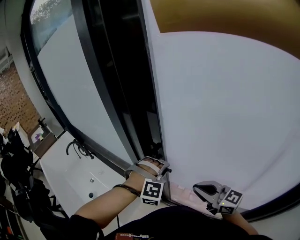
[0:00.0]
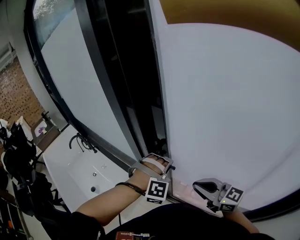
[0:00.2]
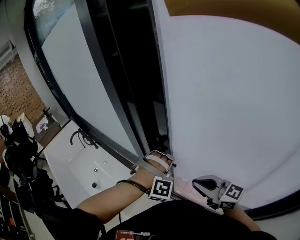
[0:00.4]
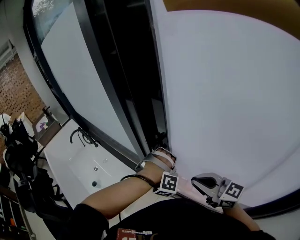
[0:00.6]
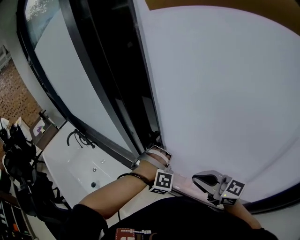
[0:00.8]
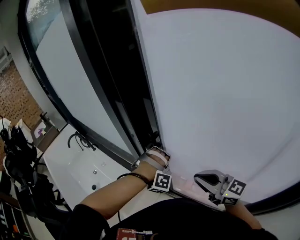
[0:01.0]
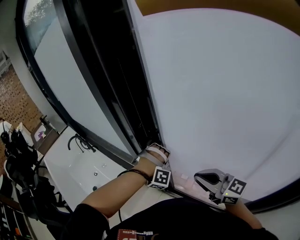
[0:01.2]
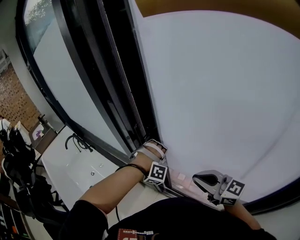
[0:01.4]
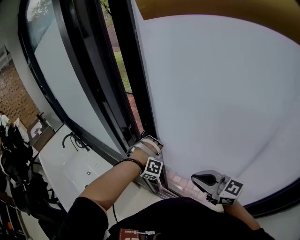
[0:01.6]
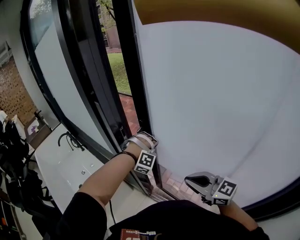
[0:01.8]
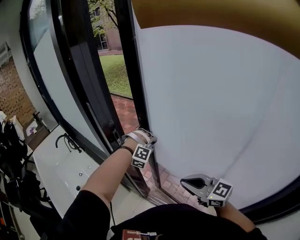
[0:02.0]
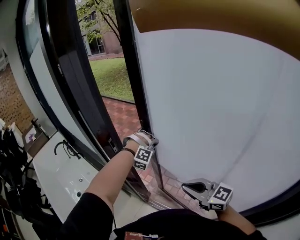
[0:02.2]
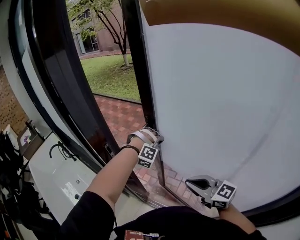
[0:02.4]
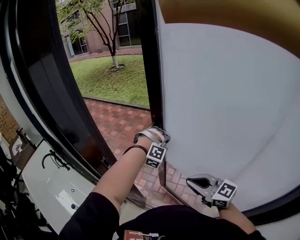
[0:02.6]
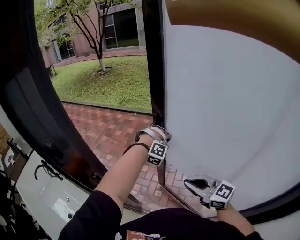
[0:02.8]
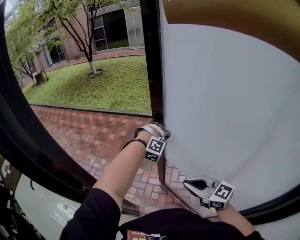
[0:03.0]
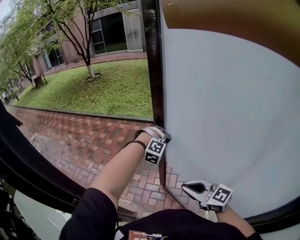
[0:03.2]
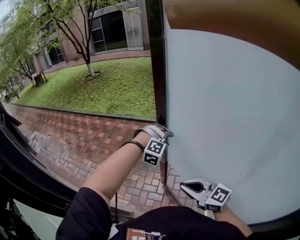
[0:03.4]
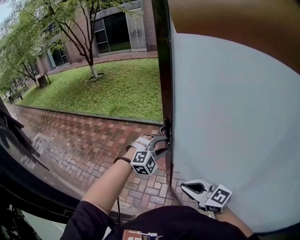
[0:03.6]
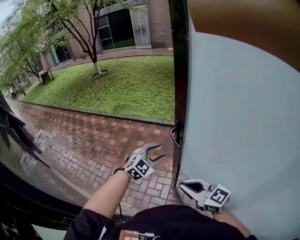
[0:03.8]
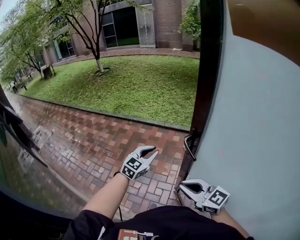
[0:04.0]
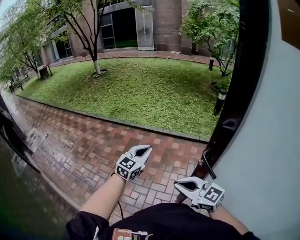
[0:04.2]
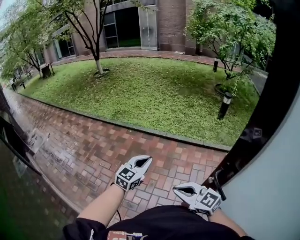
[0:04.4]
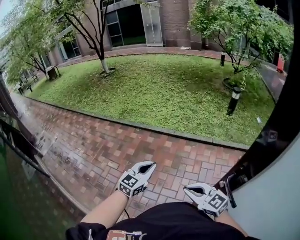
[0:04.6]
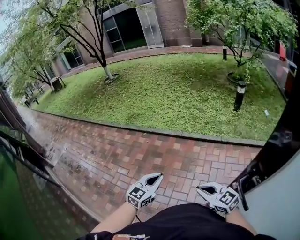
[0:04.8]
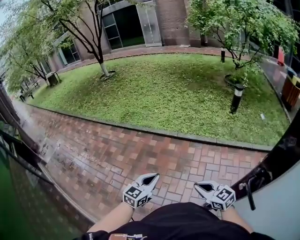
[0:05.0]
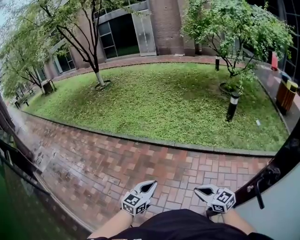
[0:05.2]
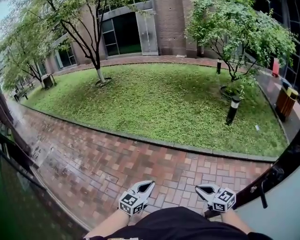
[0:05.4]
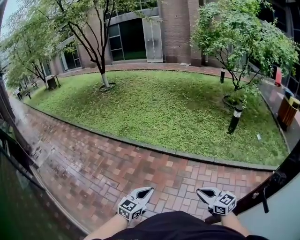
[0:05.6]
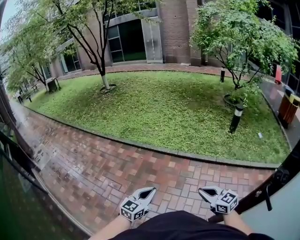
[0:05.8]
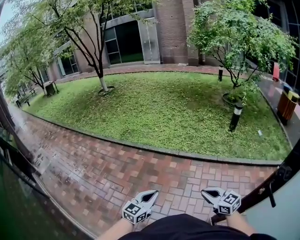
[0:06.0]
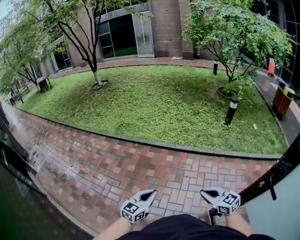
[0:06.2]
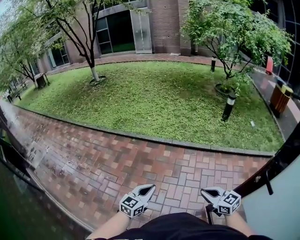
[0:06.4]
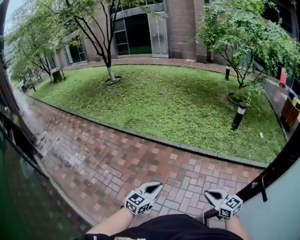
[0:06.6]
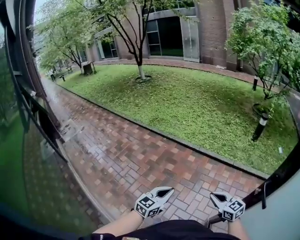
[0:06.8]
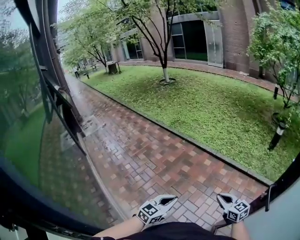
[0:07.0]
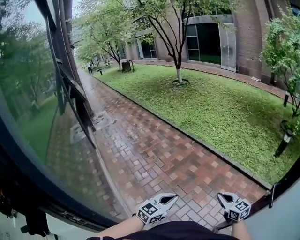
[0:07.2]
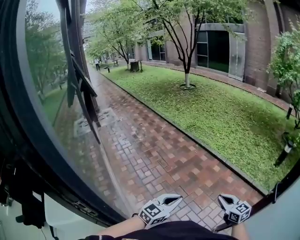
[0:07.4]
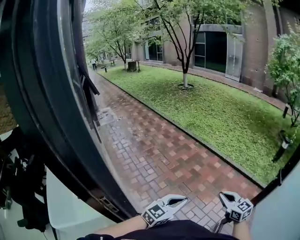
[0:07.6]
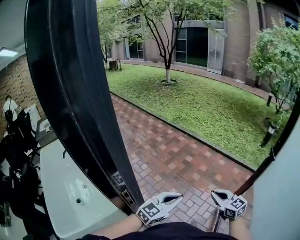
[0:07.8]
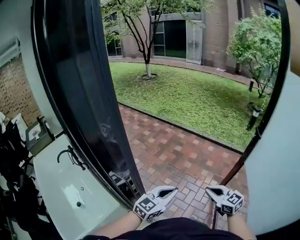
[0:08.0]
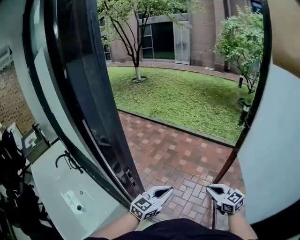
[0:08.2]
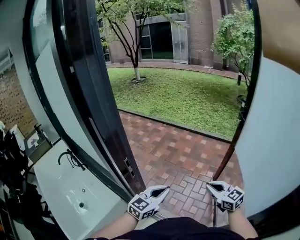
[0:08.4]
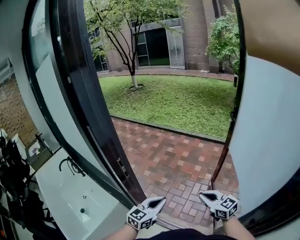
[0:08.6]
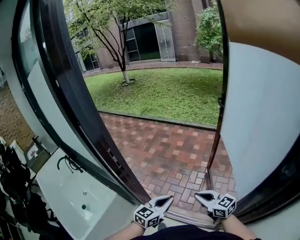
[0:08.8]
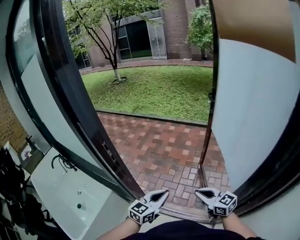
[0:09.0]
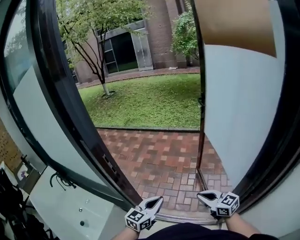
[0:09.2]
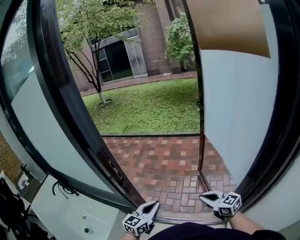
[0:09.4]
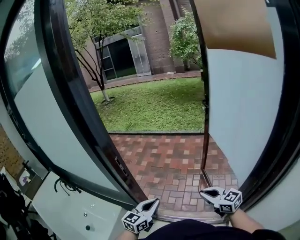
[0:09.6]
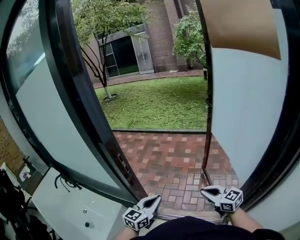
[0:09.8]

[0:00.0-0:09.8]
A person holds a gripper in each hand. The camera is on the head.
0.0 to 1.4 s: The left gripper is displaced to the right, forward and downward by about 10 cm, and changes its angle by some 20 degrees.
1.4 to 2.8 s: The right gripper travels to the right and forward by roughly 15 cm. Meanwhile the left gripper moves to the right and forward, roughly 30 cm, and swivels some 20 degrees.
2.8 to 4.2 s: Both grippers travel together forward, some 35 cm. The left gripper twists approximately 90 degrees counterclockwise, seen from behind, and opens, then closes once more.
4.2 to 5.6 s: The right gripper moves forward, about 25 cm, while the left gripper moves forward, downward and to the left, roughly 15 cm.
5.6 to 7.0 s: The right gripper is displaced backward by approximately 10 cm, while the left gripper goes approximately 20 cm backward.
7.0 to 8.4 s: The two grippers travel together, backward and to the left, about 50 cm.
8.4 to 9.8 s: The grippers both shift backward by roughly 15 cm.

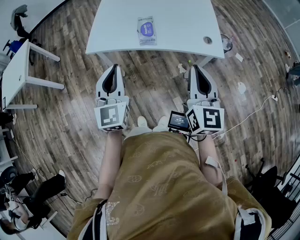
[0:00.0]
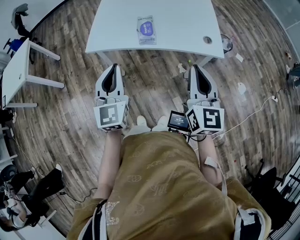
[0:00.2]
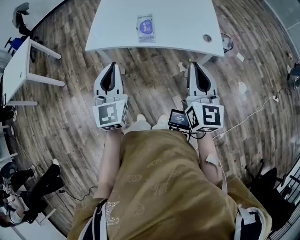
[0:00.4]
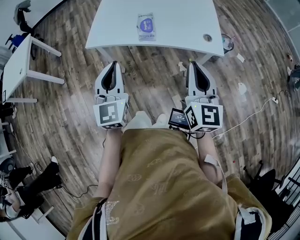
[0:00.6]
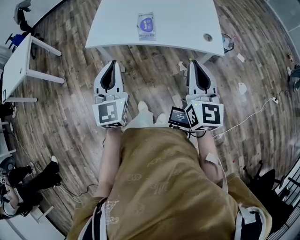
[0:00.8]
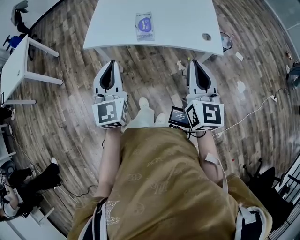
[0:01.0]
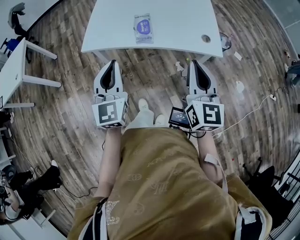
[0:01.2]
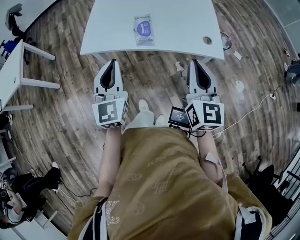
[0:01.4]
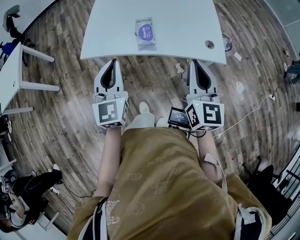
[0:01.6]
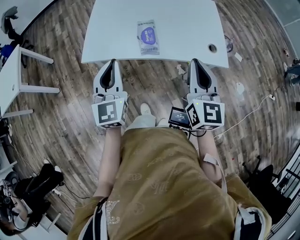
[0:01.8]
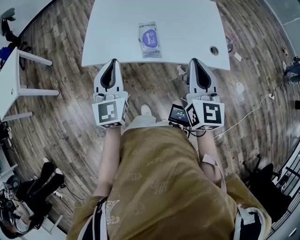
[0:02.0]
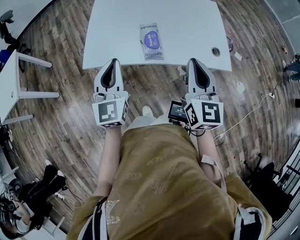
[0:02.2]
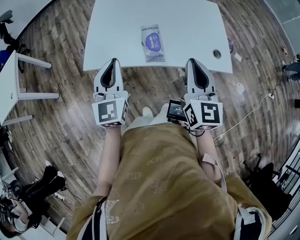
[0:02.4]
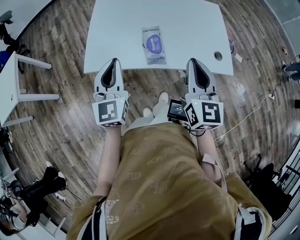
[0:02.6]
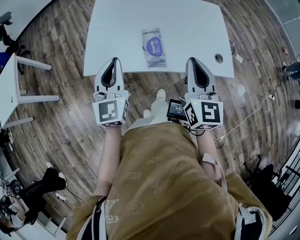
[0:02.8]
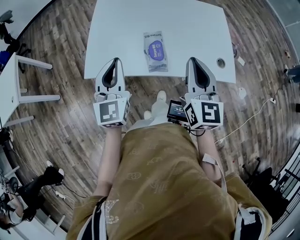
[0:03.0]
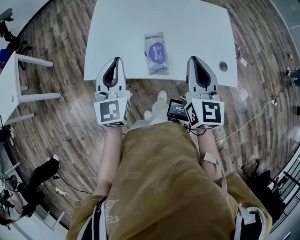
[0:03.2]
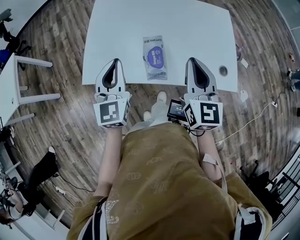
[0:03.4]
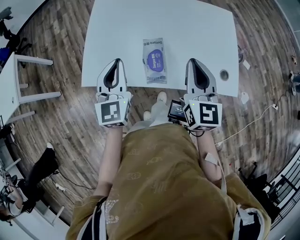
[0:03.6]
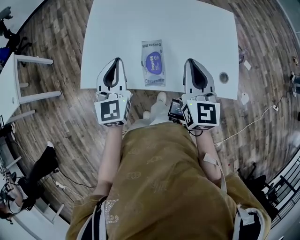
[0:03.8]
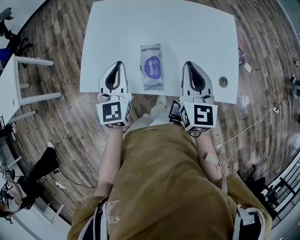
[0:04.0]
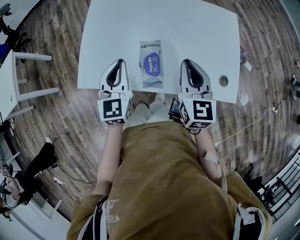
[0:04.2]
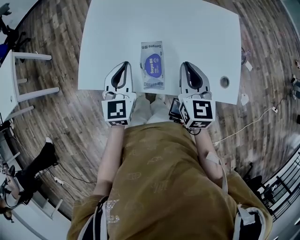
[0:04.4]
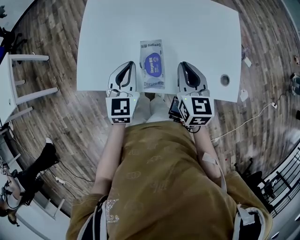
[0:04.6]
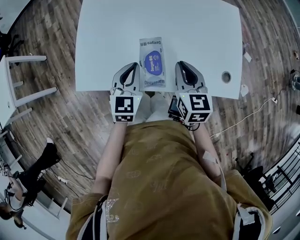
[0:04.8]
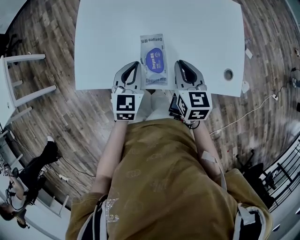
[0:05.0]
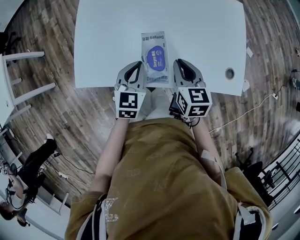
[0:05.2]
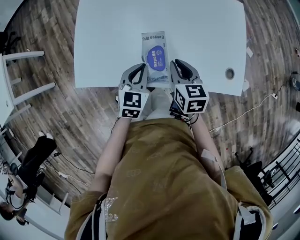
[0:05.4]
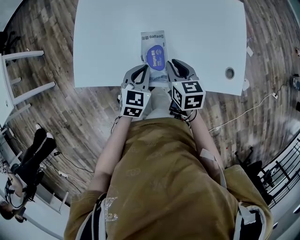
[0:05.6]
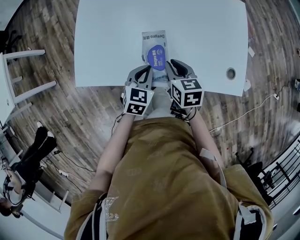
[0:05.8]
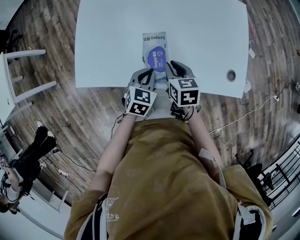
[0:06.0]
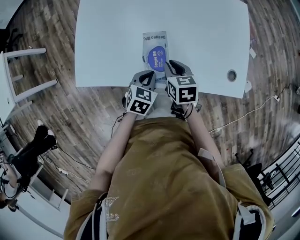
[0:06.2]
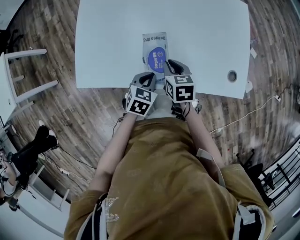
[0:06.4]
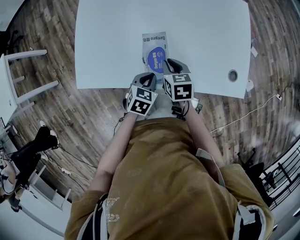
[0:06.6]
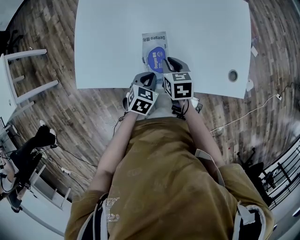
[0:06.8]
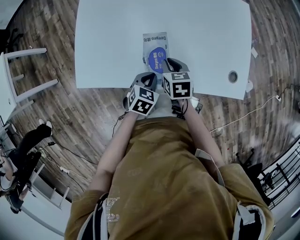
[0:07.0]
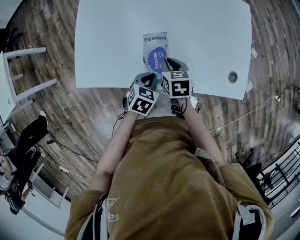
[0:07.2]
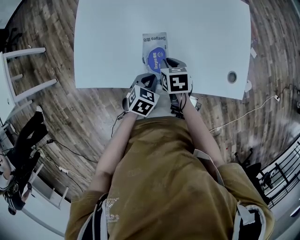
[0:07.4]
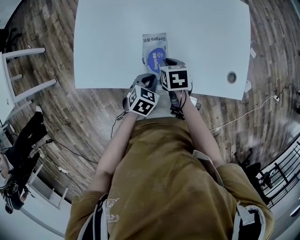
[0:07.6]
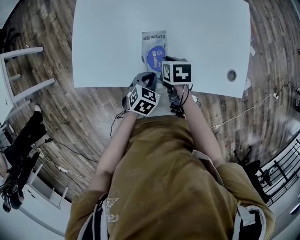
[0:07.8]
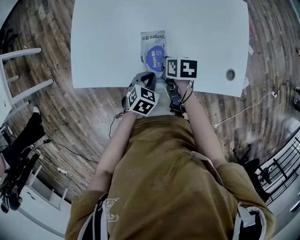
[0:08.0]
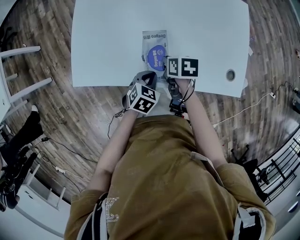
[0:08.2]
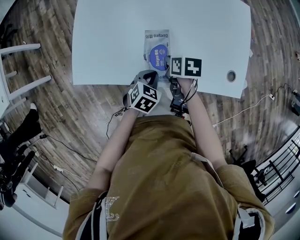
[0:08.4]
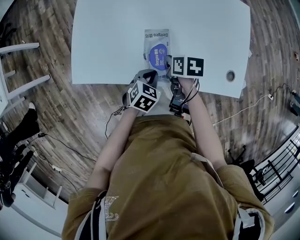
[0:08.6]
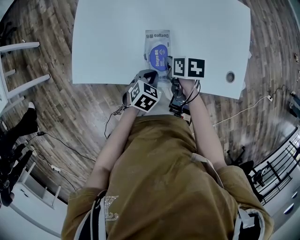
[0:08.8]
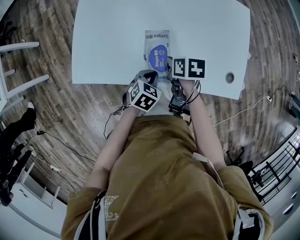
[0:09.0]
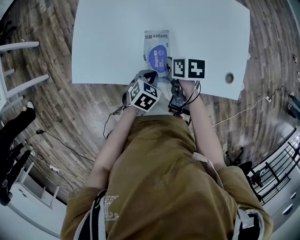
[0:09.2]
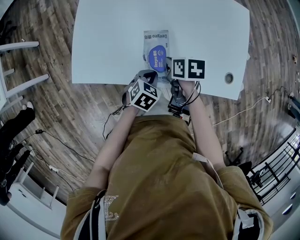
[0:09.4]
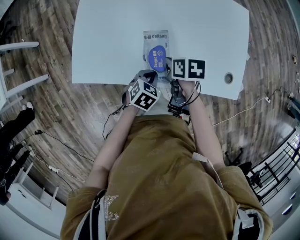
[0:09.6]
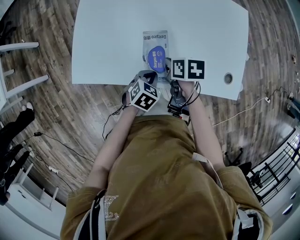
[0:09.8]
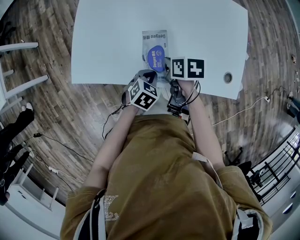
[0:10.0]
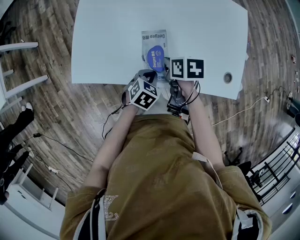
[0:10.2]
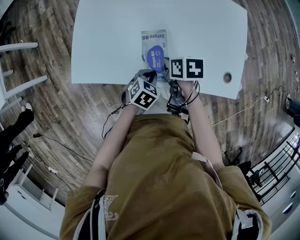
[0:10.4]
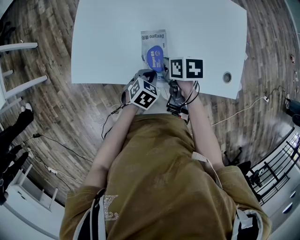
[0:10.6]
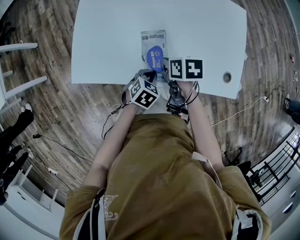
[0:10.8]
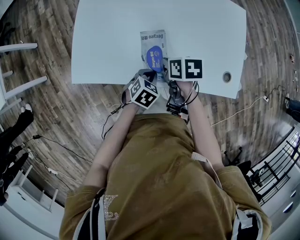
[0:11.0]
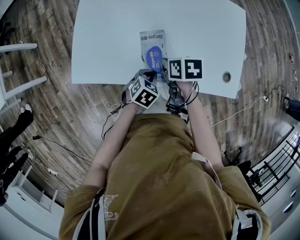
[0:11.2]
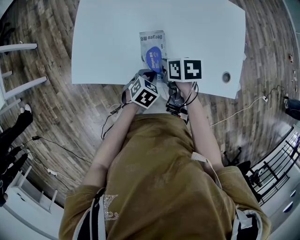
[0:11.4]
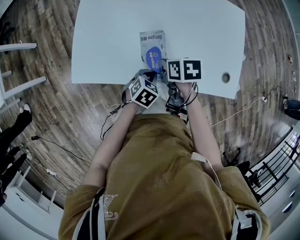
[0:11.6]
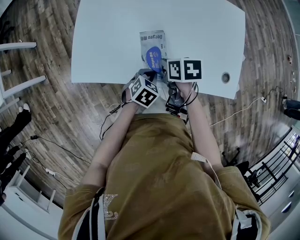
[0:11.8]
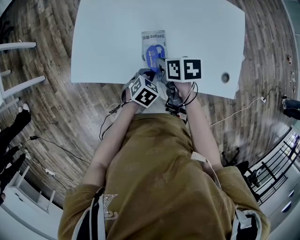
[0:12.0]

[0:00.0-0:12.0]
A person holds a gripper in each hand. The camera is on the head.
0.0 to 1.6 s: The grippers both shift forward by about 10 cm.
1.6 to 3.0 s: The right gripper moves forward and to the left, about 15 cm, while the left gripper shifts some 15 cm forward.
3.0 to 4.4 s: The right gripper heads forward and downward, covering roughly 15 cm. Meanwhile the left gripper travels forward, downward and to the right by roughly 15 cm.
4.4 to 6.0 s: The left gripper moves downward and to the right, approximately 20 cm, and changes its angle by about 30 degrees, while the right gripper is displaced downward by some 15 cm, and changes its angle by approximately 30 degrees.
6.0 to 7.6 s: The grippers stay close to where they were, moving slightly.
7.6 to 10.4 s: The grippers stay close to where they were, moving slightly.
10.4 to 12.0 s: There are only small adjustments of the grippers.

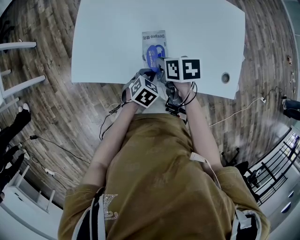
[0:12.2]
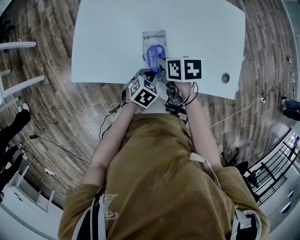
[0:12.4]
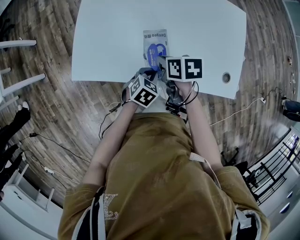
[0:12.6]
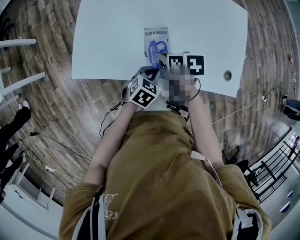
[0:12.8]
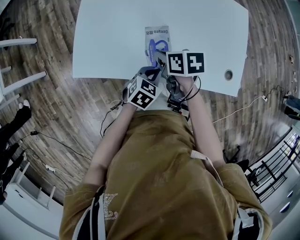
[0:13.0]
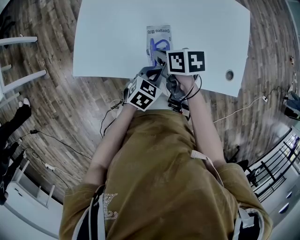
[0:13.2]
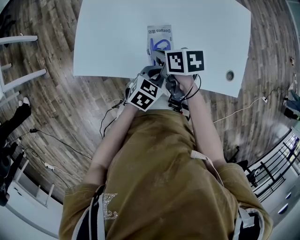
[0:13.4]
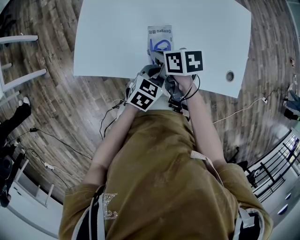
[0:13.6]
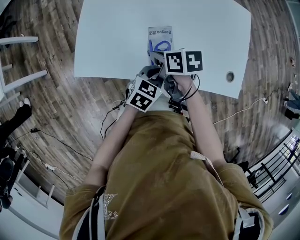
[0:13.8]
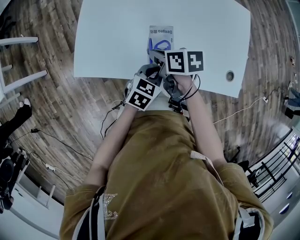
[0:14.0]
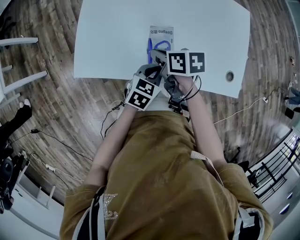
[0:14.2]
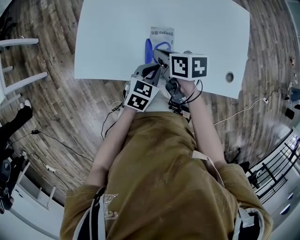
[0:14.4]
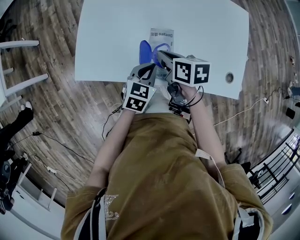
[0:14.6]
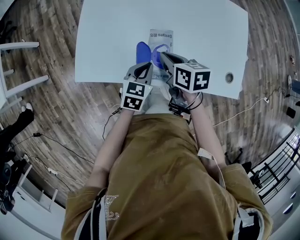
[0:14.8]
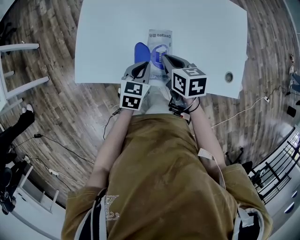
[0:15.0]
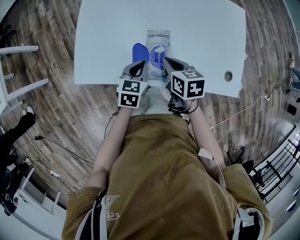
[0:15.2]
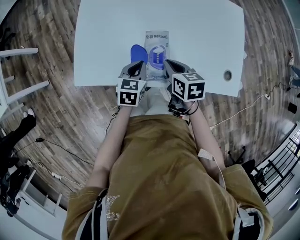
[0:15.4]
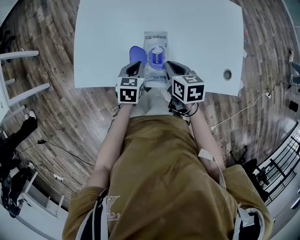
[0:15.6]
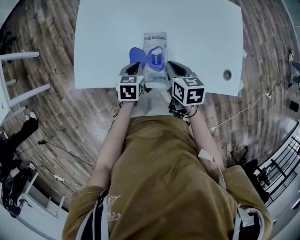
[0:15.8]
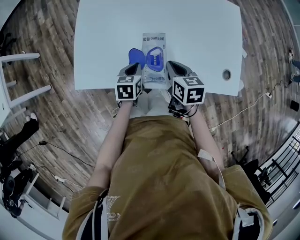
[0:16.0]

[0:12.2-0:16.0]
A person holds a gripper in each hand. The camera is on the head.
12.2 to 13.4 s: The left gripper shifts roughly 5 cm upward.
13.4 to 14.8 s: The left gripper shifts some 5 cm to the left.
14.8 to 16.0 s: The right gripper moves roughly 5 cm. Meanwhile the left gripper travels downward by about 5 cm.
